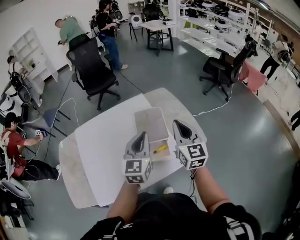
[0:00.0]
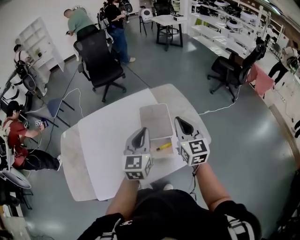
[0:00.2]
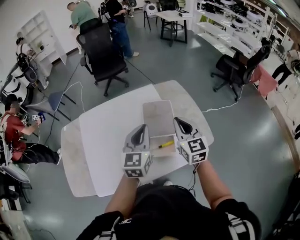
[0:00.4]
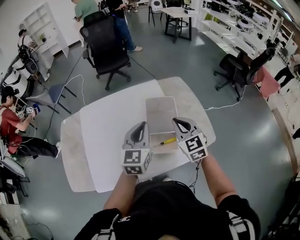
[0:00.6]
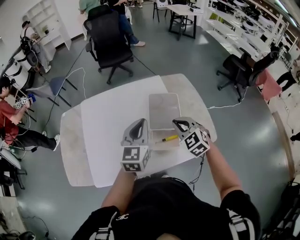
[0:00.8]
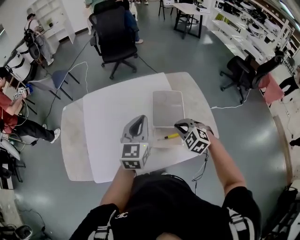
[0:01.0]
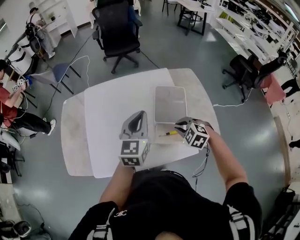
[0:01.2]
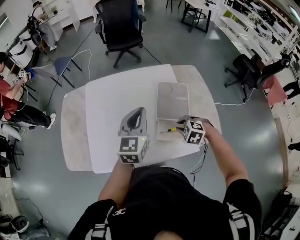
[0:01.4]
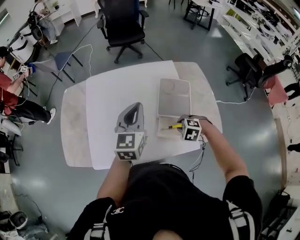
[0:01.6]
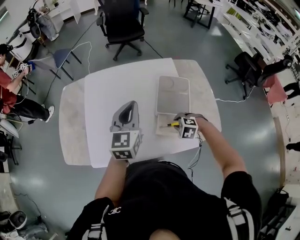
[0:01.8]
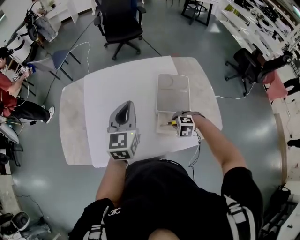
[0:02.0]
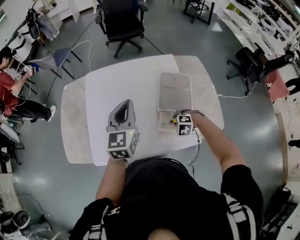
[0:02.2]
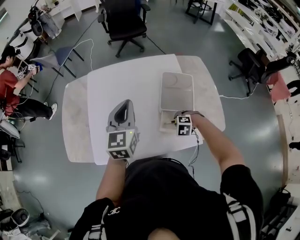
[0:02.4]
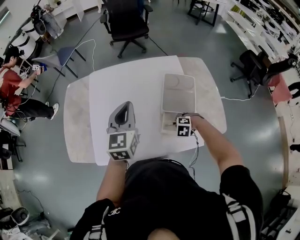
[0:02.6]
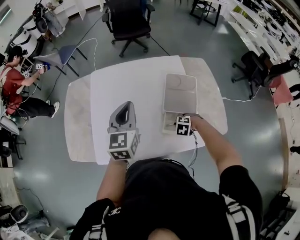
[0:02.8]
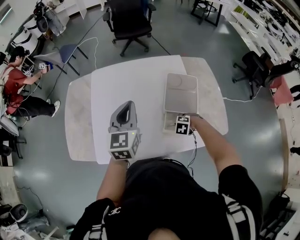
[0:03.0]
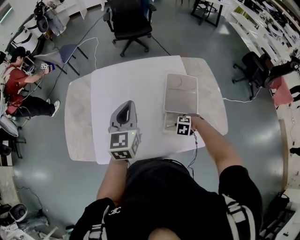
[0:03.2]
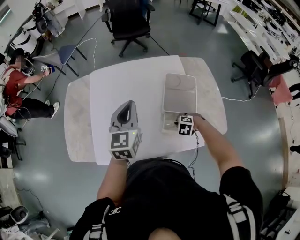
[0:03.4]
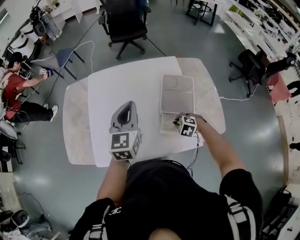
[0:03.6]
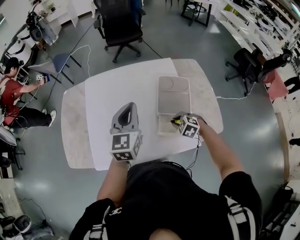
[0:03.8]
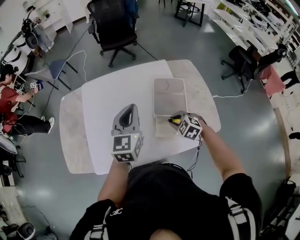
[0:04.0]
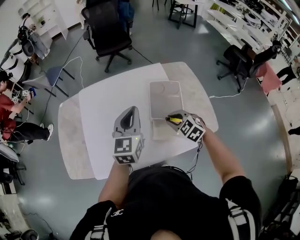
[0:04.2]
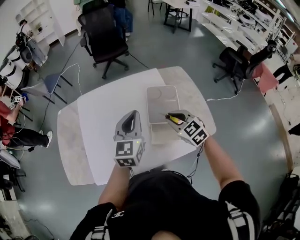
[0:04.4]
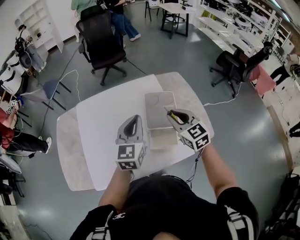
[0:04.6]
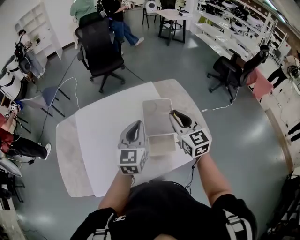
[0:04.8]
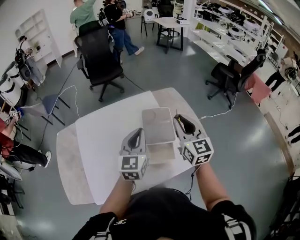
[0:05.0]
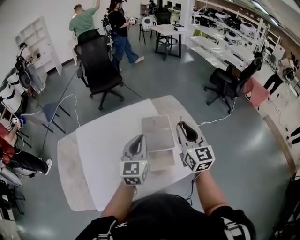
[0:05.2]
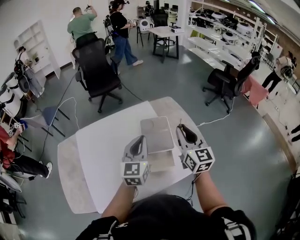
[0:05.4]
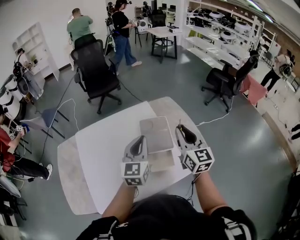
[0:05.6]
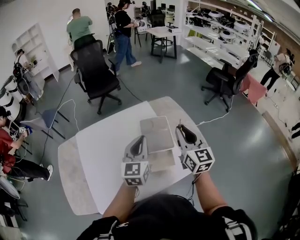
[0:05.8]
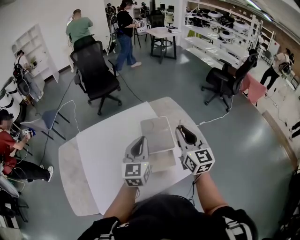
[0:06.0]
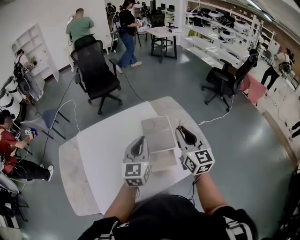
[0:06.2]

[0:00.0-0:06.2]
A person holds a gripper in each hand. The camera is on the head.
0:00.0 to 0:01.6: The right gripper moves downward, approximately 25 cm, and angles its fingers downward, by some 70 degrees. Meanwhile the left gripper shifts by roughly 15 cm.
0:01.6 to 0:03.2: The left gripper changes place by roughly 5 cm, while the right gripper travels downward by some 10 cm.
0:03.2 to 0:04.6: The left gripper shifts by about 10 cm. The right gripper moves upward, approximately 30 cm, and tips its fingers upward by approximately 60 degrees.
0:04.6 to 0:06.2: The right gripper moves upward and to the right, some 10 cm, and rotates some 30 degrees.

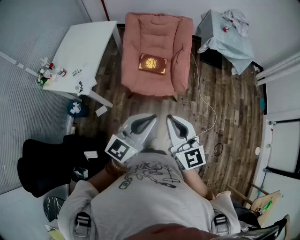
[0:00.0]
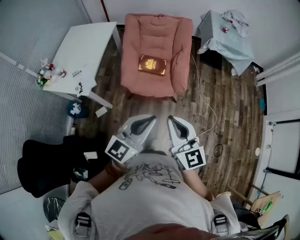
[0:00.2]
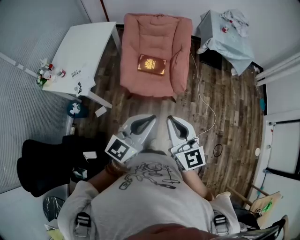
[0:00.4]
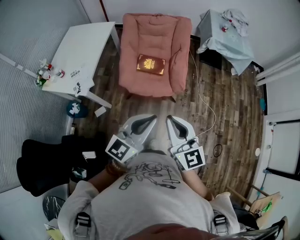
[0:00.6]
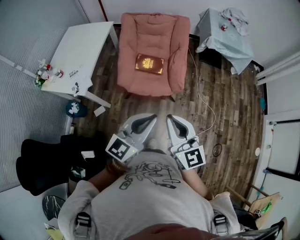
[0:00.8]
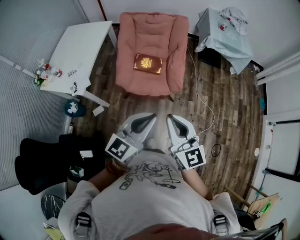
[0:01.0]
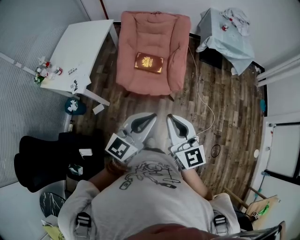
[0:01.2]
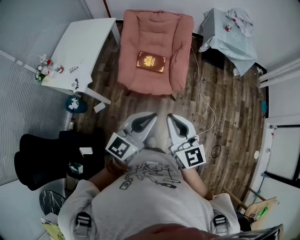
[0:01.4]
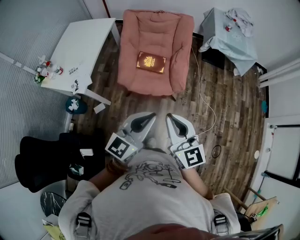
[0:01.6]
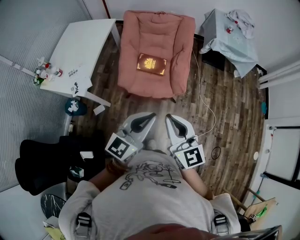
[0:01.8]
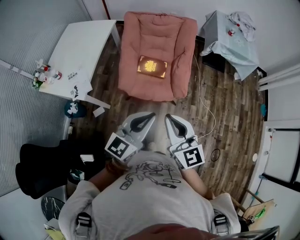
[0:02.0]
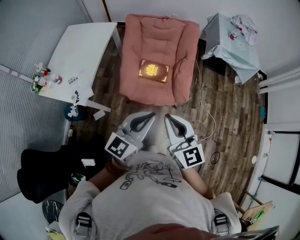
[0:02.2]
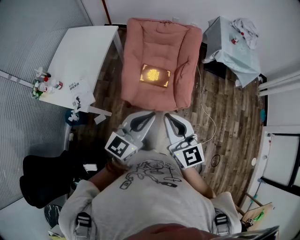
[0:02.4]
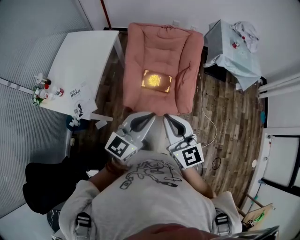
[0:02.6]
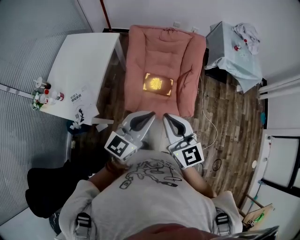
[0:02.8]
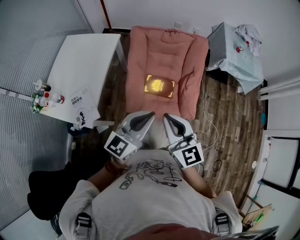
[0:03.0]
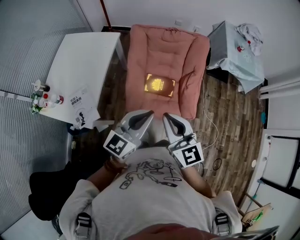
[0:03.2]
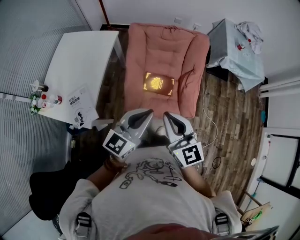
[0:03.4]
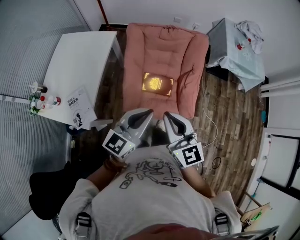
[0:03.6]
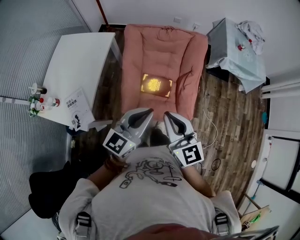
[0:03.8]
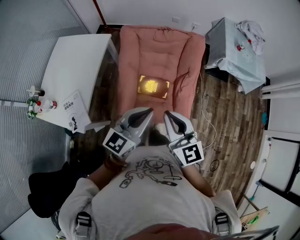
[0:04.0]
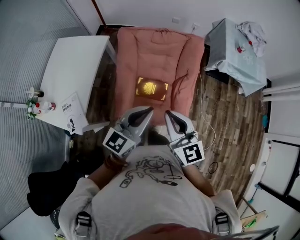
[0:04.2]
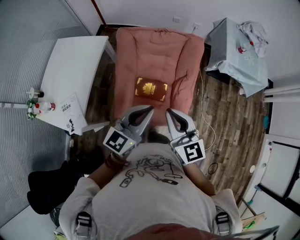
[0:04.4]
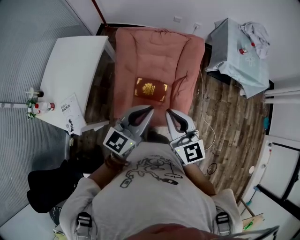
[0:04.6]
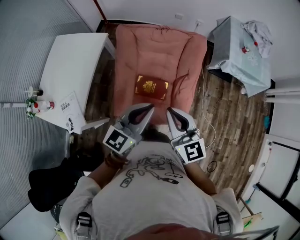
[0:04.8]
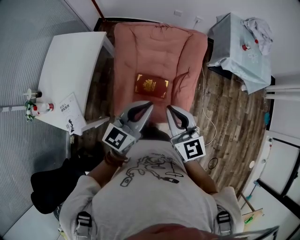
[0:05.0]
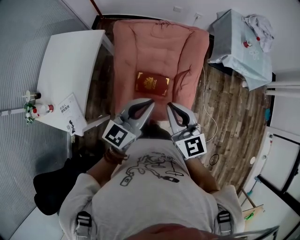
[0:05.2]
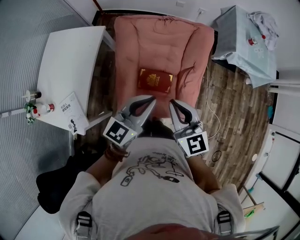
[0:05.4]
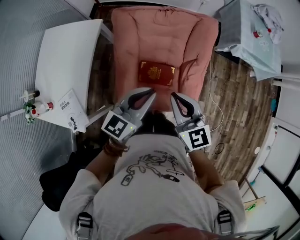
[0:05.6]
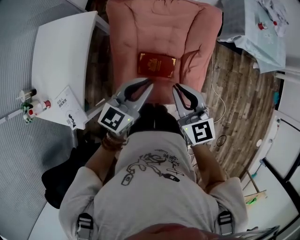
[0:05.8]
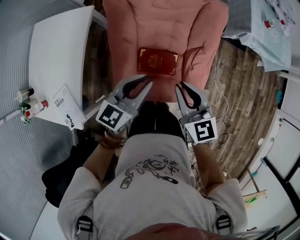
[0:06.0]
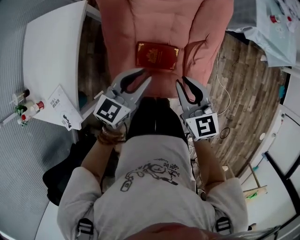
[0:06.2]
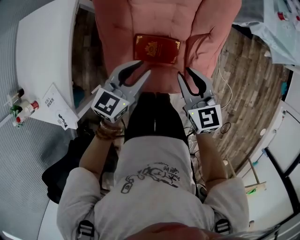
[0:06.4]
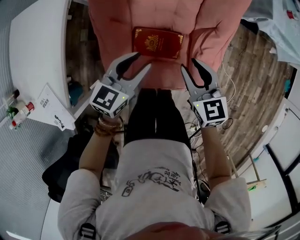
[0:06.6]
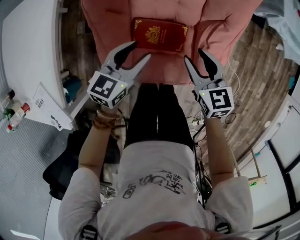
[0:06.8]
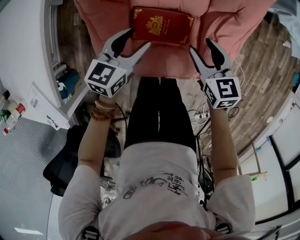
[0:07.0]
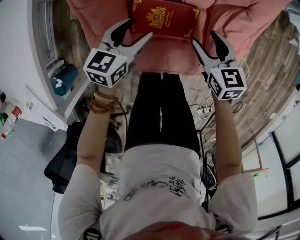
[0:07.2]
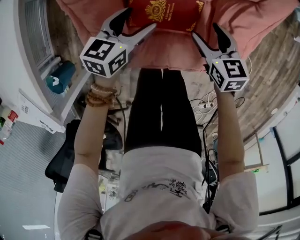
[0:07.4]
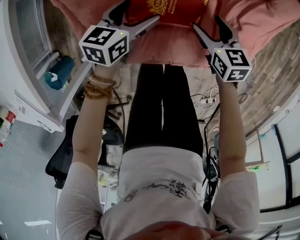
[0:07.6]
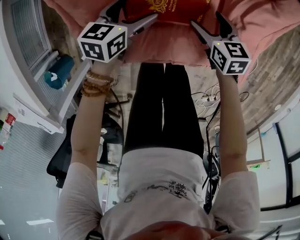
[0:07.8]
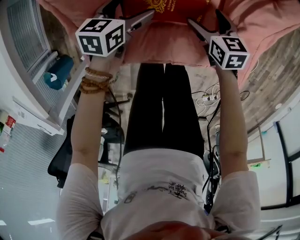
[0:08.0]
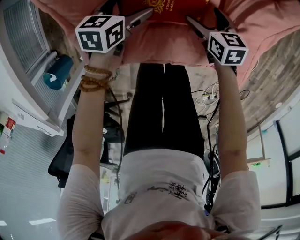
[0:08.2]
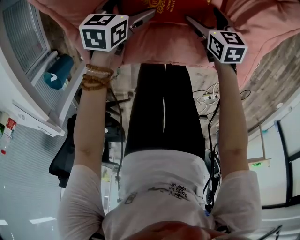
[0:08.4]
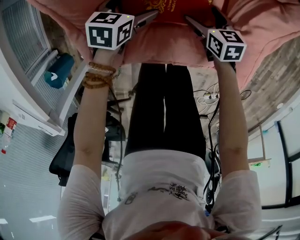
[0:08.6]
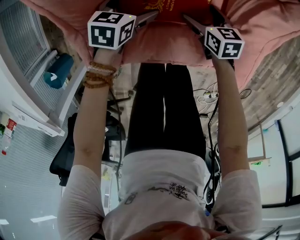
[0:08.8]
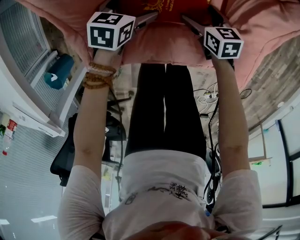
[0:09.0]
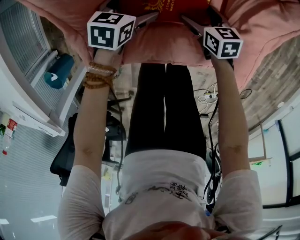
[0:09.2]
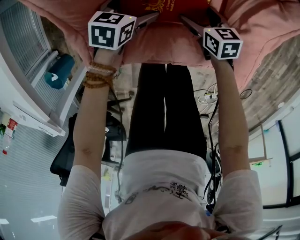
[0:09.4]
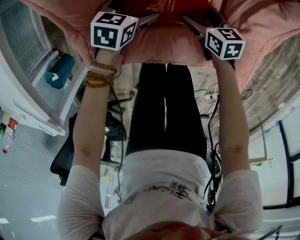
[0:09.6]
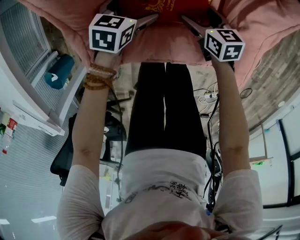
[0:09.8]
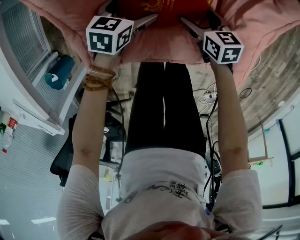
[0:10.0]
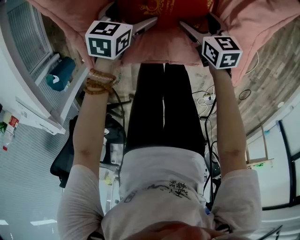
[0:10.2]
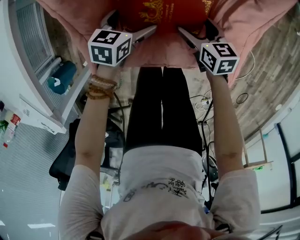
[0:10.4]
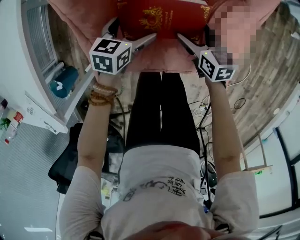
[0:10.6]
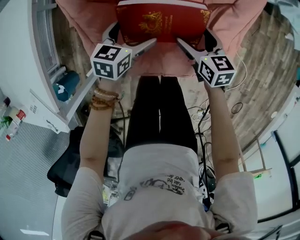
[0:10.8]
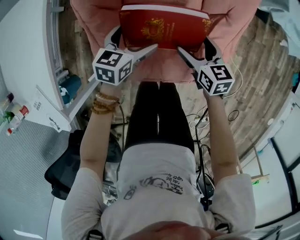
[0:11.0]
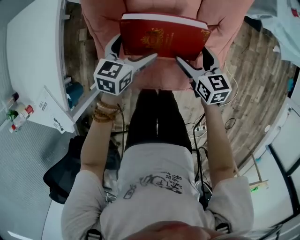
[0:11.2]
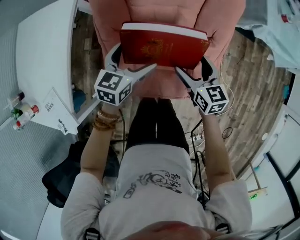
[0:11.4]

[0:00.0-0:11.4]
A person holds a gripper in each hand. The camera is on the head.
0:00.0 to 0:01.4: Both grippers travel together to the right, roughly 5 cm.
0:01.4 to 0:02.8: The grippers both shift forward and to the left by roughly 30 cm.
0:02.8 to 0:04.2: The grippers both shift forward and to the right by some 20 cm.
0:04.2 to 0:05.6: Both grippers travel together forward and downward, some 15 cm.
0:05.6 to 0:07.2: Both grippers travel together downward, roughly 50 cm. The left gripper swivels some 30 degrees, and opens. The right gripper changes its angle by some 30 degrees, and opens its fingers.
0:07.2 to 0:08.6: Both grippers move downward, roughly 20 cm. The right gripper opens up. The left gripper rotates roughly 20 degrees, and opens up.
0:08.6 to 0:10.0: The grippers move only a little.
0:10.0 to 0:11.4: Both grippers travel together upward, approximately 40 cm. The right gripper changes its angle by approximately 20 degrees. Meanwhile the left gripper rotates some 20 degrees.

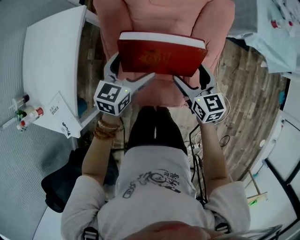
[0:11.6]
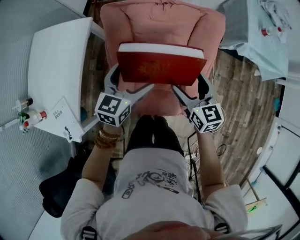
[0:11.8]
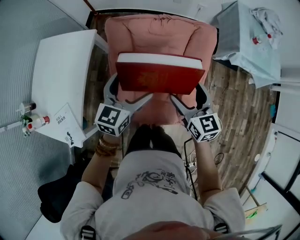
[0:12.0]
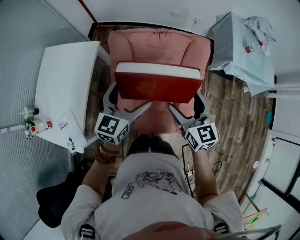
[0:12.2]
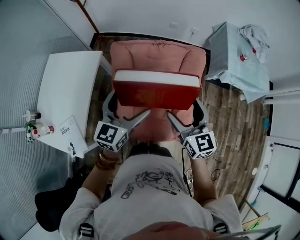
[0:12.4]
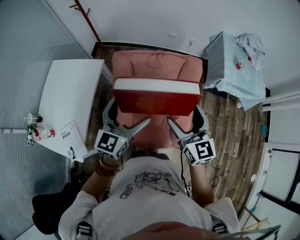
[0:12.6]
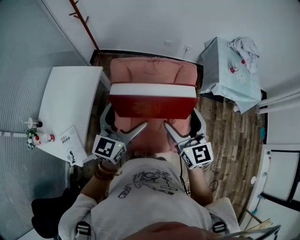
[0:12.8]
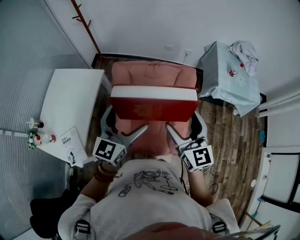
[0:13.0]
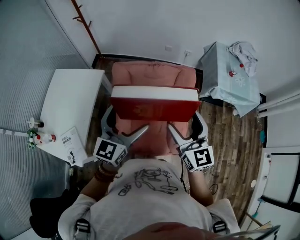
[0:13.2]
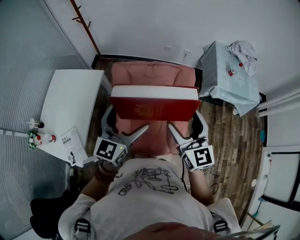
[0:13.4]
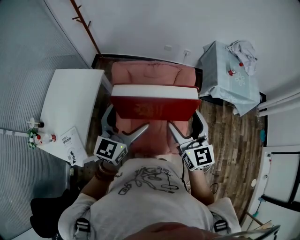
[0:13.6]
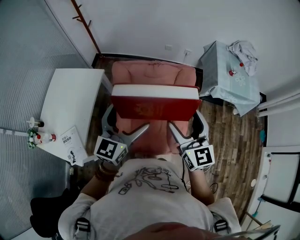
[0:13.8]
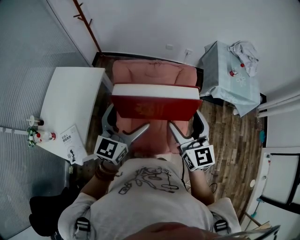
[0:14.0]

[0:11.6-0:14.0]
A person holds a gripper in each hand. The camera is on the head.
0:11.6 to 0:12.8: Both grippers travel together upward, about 30 cm. The left gripper changes its angle by about 30 degrees, while the right gripper changes its angle by roughly 30 degrees.
0:12.8 to 0:14.0: There are only small adjustments of the grippers.

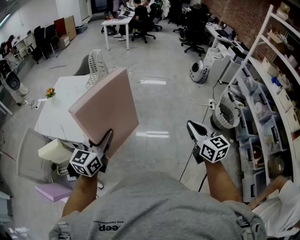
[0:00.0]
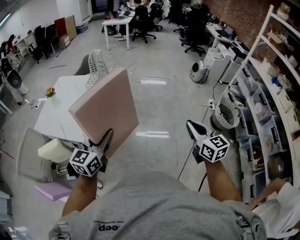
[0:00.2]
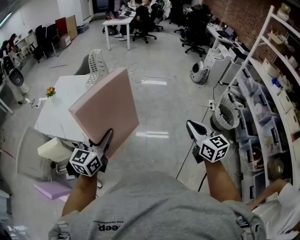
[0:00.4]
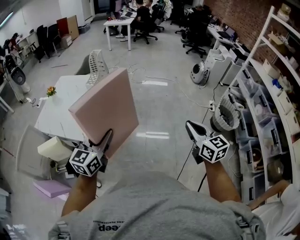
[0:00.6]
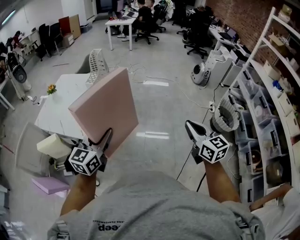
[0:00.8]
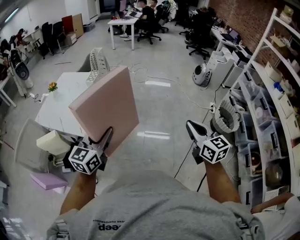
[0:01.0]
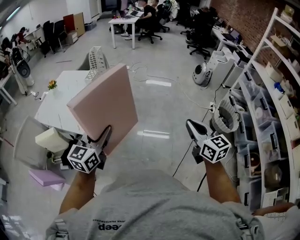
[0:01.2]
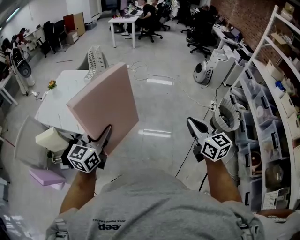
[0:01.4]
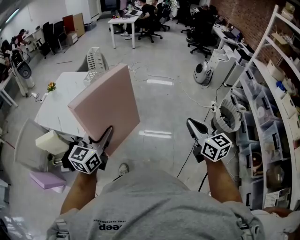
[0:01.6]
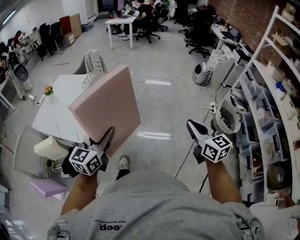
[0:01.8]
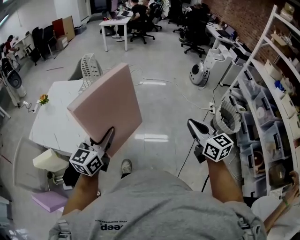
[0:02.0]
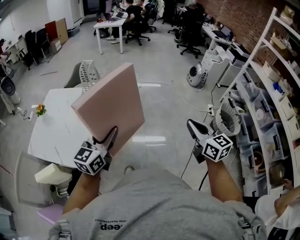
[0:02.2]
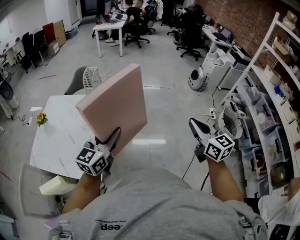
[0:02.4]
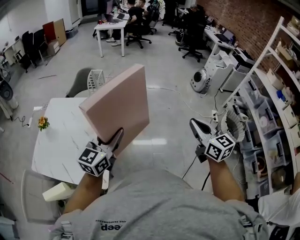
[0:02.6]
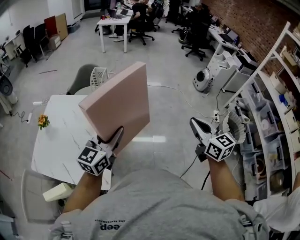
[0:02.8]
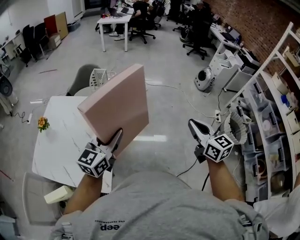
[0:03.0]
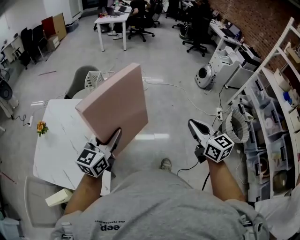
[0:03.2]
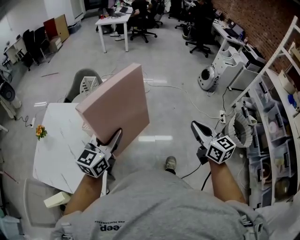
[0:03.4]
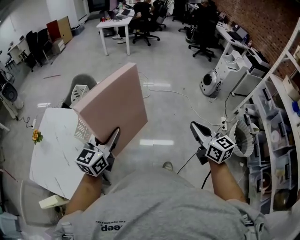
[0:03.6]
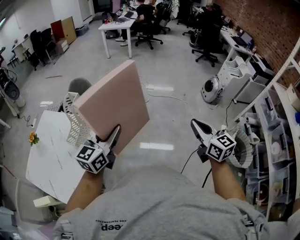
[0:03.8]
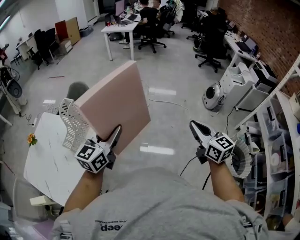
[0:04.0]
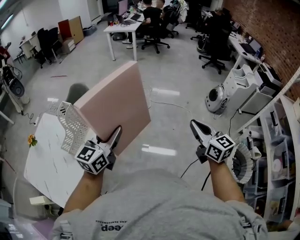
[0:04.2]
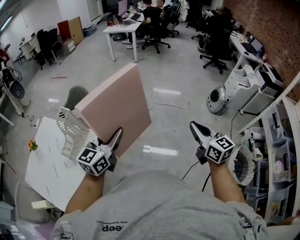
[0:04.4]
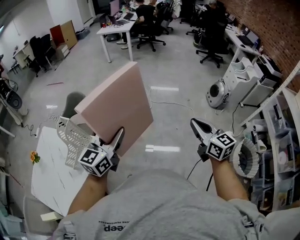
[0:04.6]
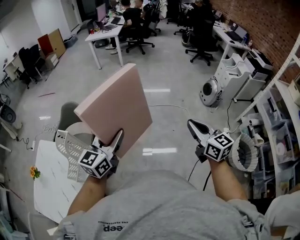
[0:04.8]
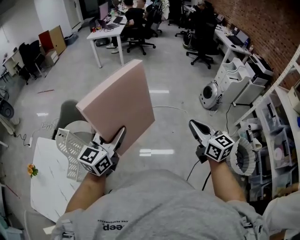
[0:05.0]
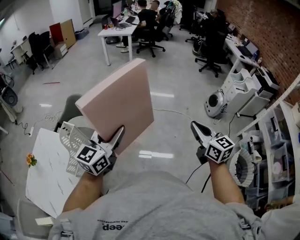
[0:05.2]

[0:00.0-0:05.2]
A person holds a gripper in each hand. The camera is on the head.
0:00.0 to 0:01.8: The two grippers go roughly 5 cm to the right.
0:01.8 to 0:03.4: The left gripper shifts roughly 35 cm forward. The right gripper shifts approximately 35 cm forward and to the left.
0:03.4 to 0:05.2: The left gripper shifts some 30 cm forward and to the right. The right gripper is displaced forward by approximately 35 cm.
